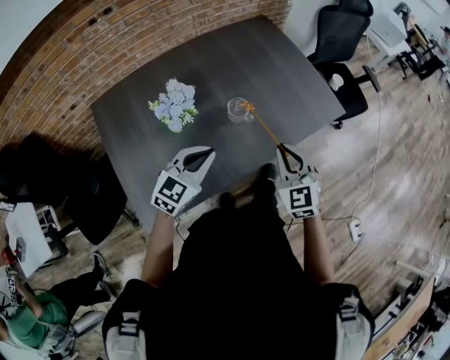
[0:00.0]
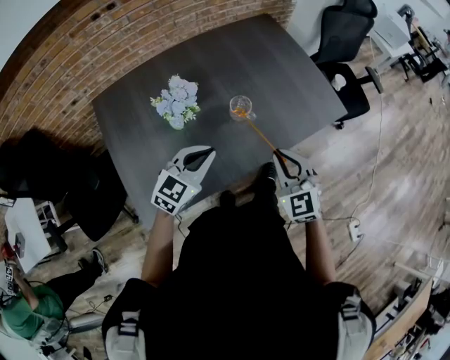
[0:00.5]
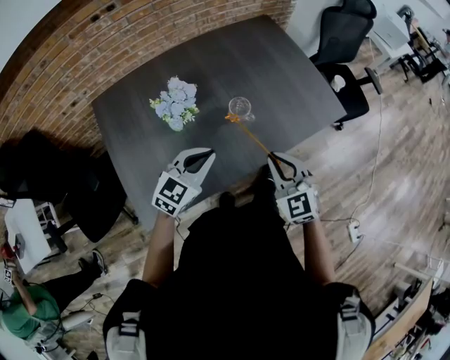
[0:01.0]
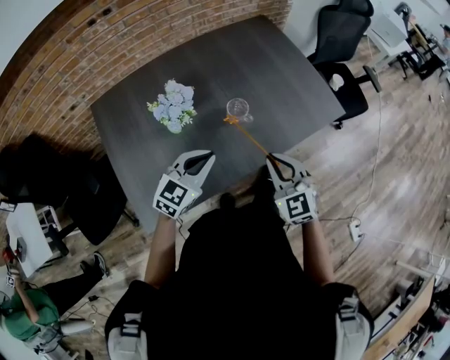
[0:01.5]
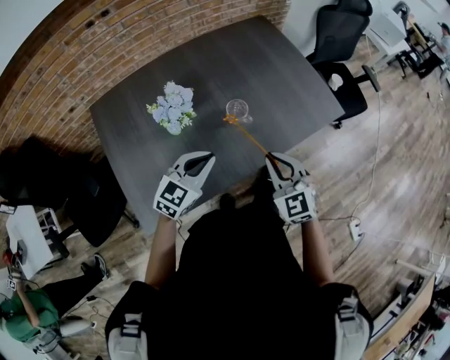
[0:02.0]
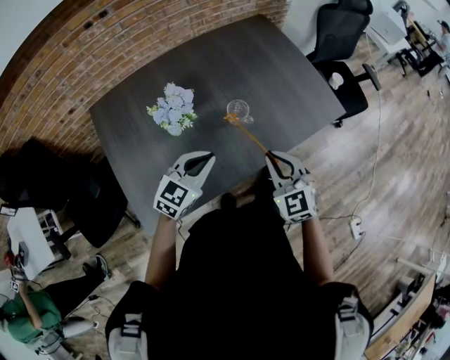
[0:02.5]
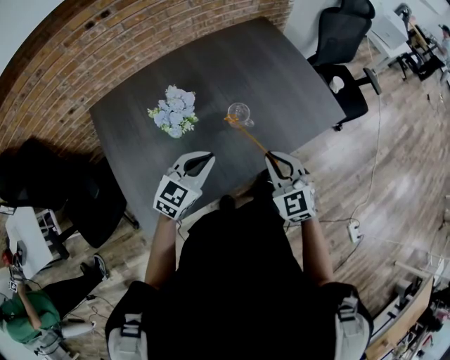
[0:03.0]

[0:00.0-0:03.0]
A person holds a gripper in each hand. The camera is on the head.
0:00.0 to 0:03.0: The grippers stay close to where they were, moving slightly.

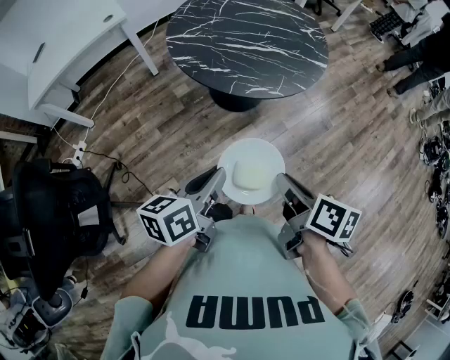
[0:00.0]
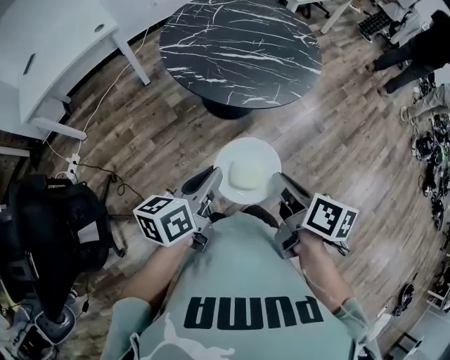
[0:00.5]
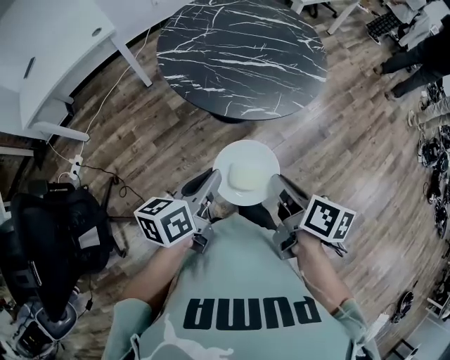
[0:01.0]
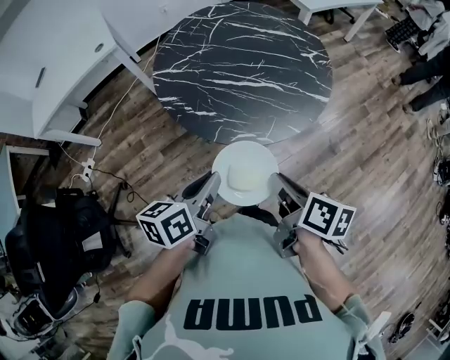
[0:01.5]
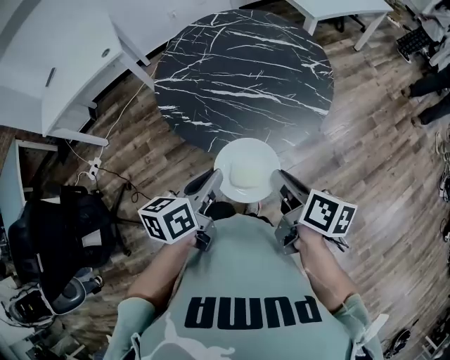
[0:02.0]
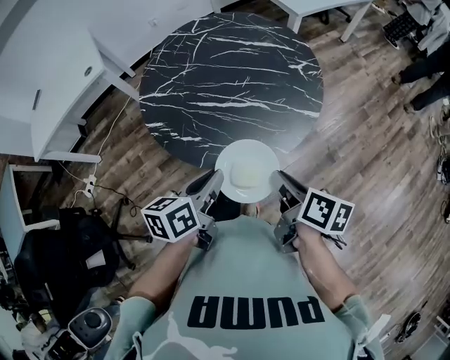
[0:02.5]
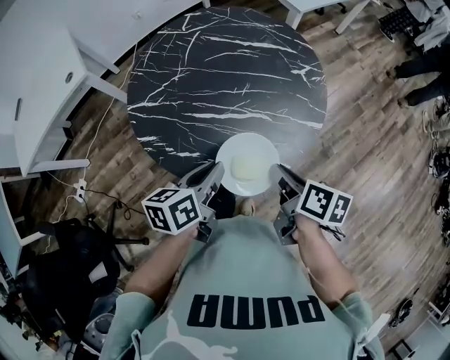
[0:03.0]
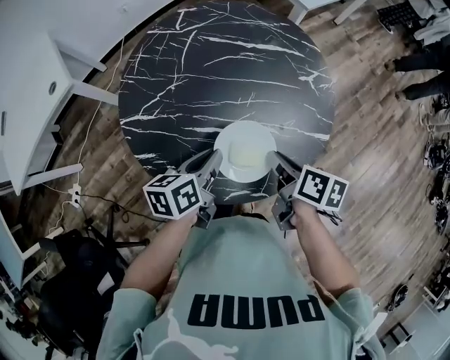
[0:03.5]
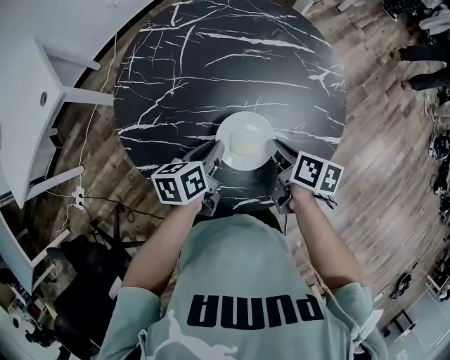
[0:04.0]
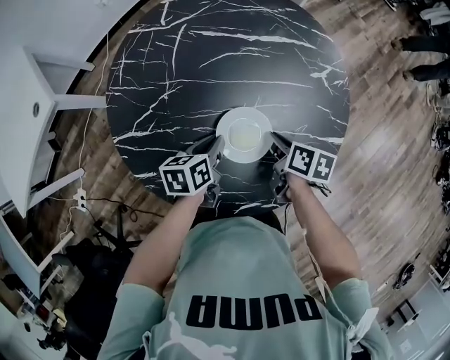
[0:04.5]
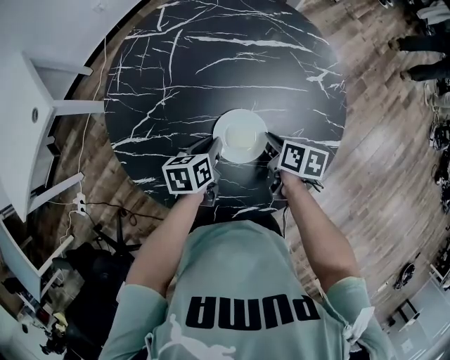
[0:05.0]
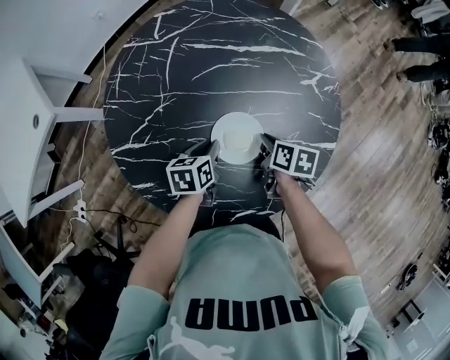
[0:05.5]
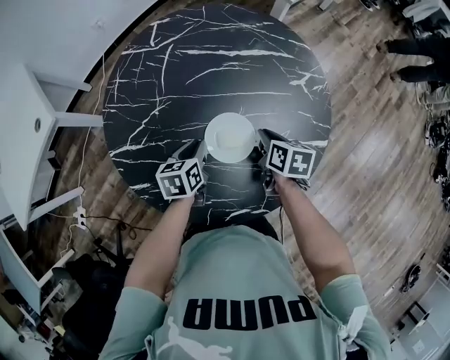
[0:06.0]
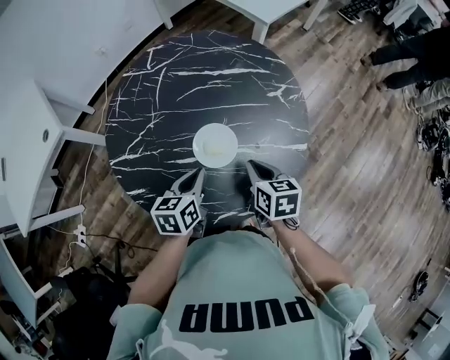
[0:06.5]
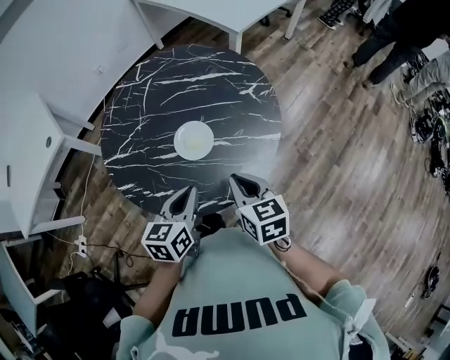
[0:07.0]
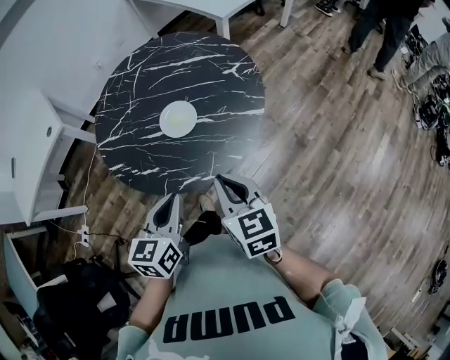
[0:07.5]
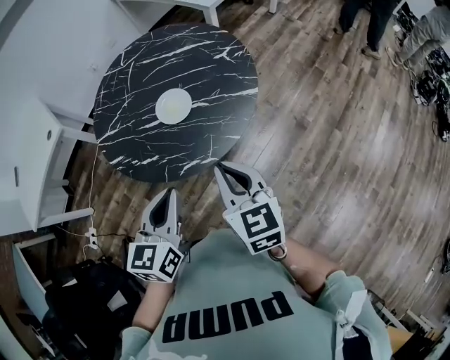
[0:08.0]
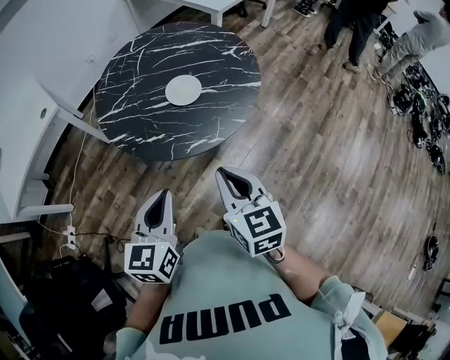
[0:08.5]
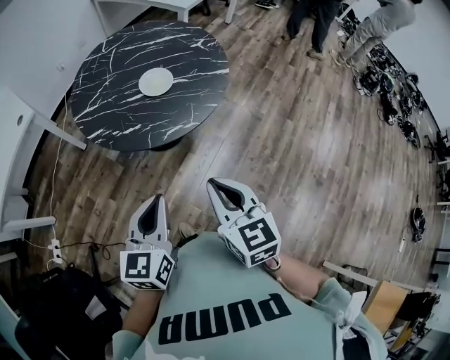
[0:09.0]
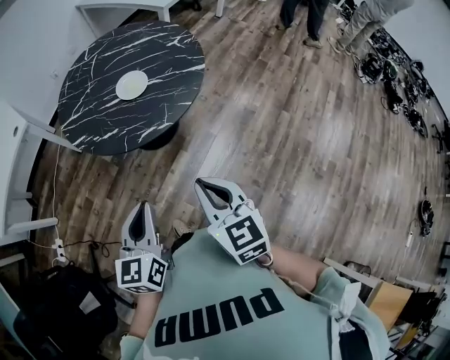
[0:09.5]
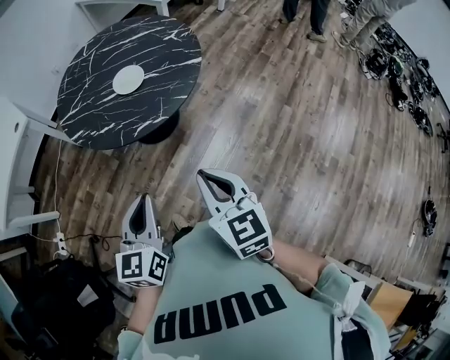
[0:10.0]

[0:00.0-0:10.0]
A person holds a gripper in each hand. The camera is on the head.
0:00.0 to 0:02.0: The grippers both shift forward and to the right by roughly 25 cm.
0:02.0 to 0:04.0: Both grippers move forward and downward, about 35 cm.
0:04.0 to 0:06.0: The right gripper travels forward and downward by approximately 10 cm; the left gripper moves downward, roughly 5 cm.
0:06.0 to 0:08.0: Both grippers travel together backward and upward, some 40 cm. The right gripper swivels roughly 40 degrees; the left gripper rotates about 30 degrees.
0:08.0 to 0:10.0: Both grippers move backward, about 20 cm.

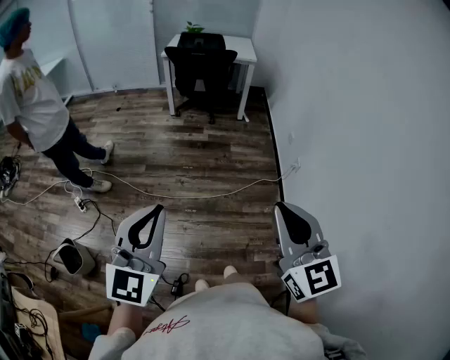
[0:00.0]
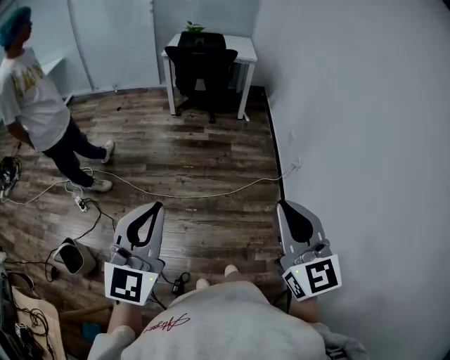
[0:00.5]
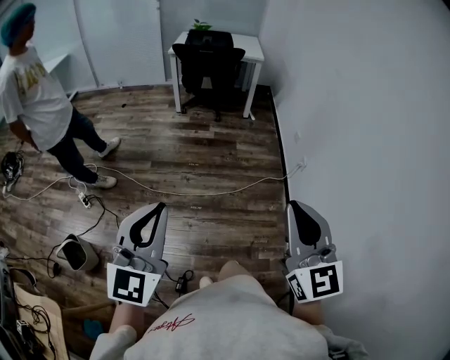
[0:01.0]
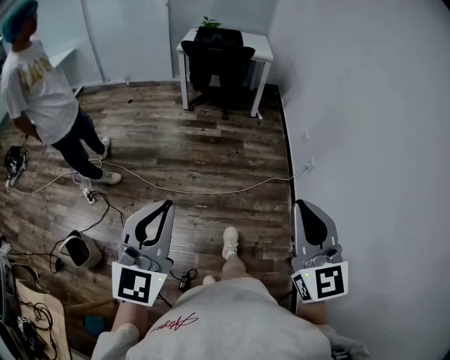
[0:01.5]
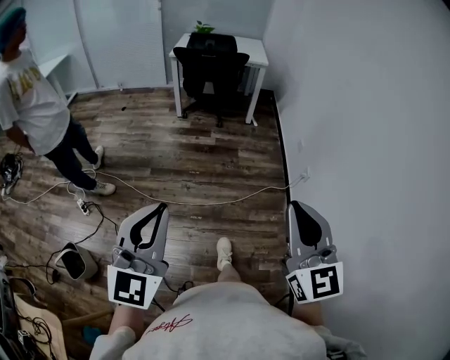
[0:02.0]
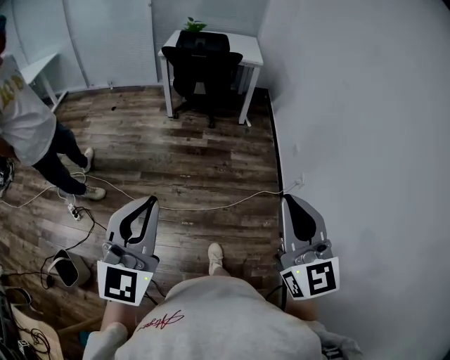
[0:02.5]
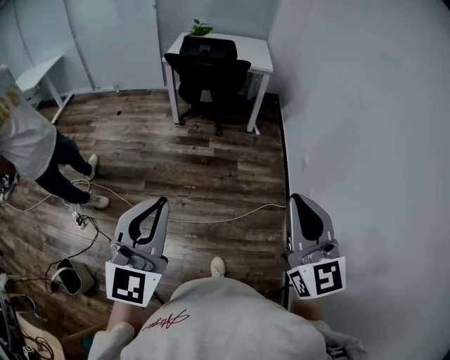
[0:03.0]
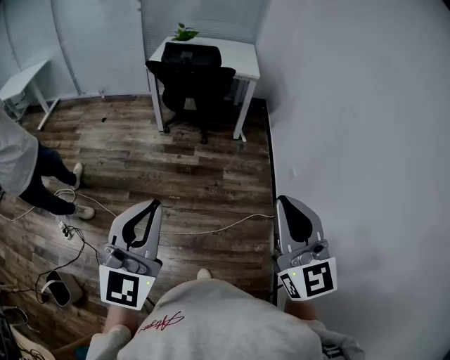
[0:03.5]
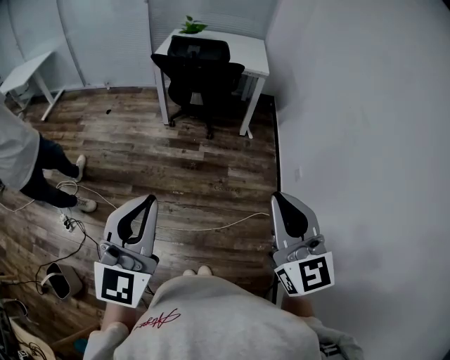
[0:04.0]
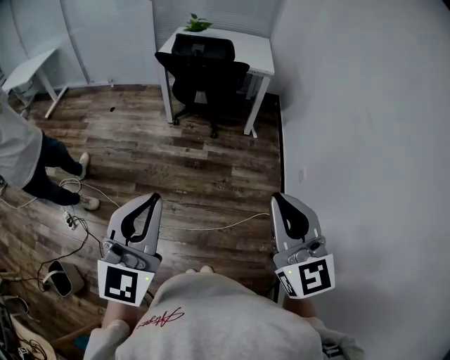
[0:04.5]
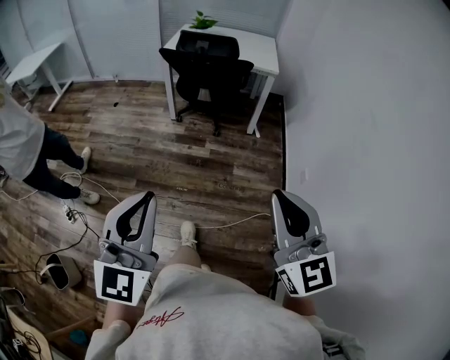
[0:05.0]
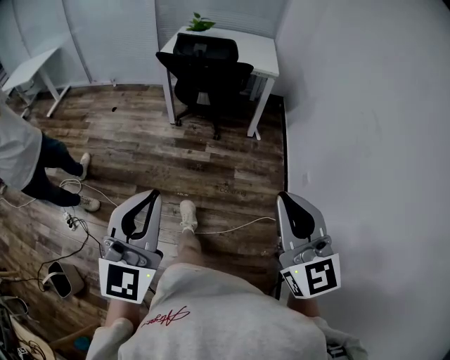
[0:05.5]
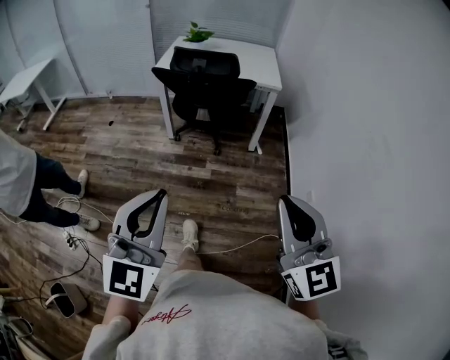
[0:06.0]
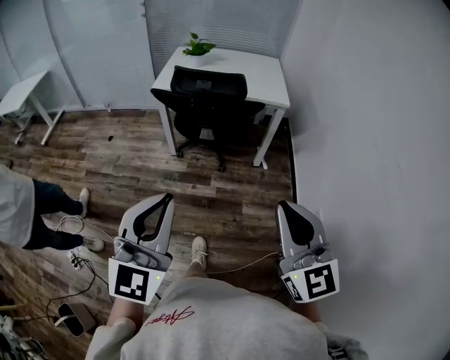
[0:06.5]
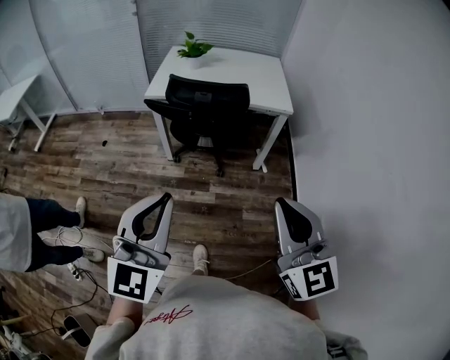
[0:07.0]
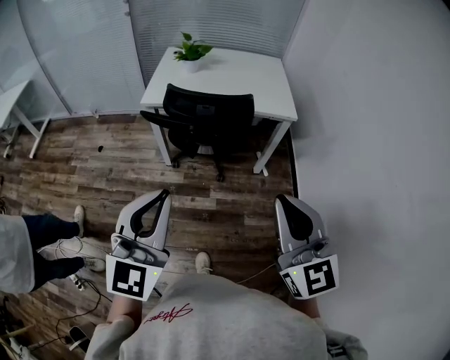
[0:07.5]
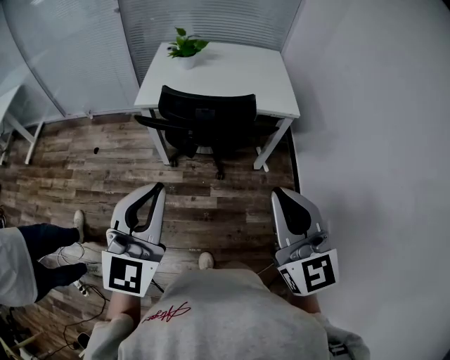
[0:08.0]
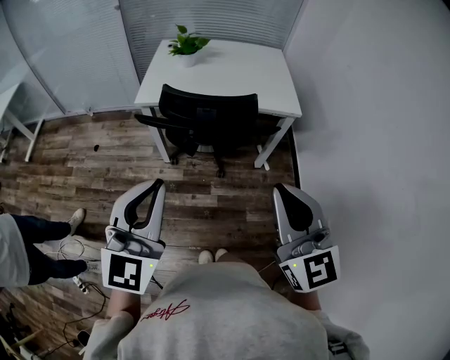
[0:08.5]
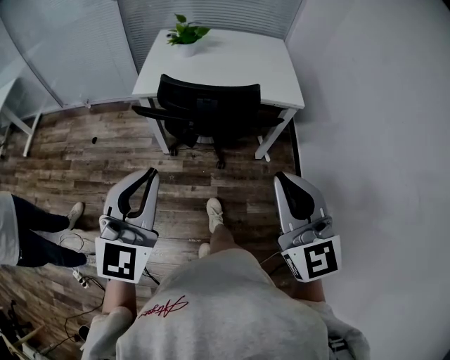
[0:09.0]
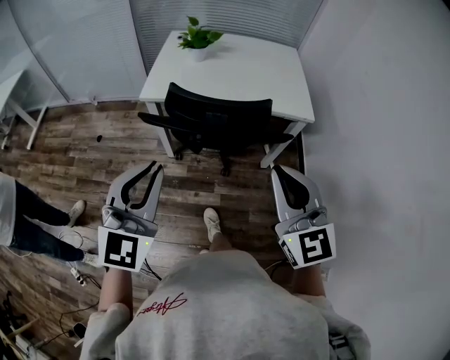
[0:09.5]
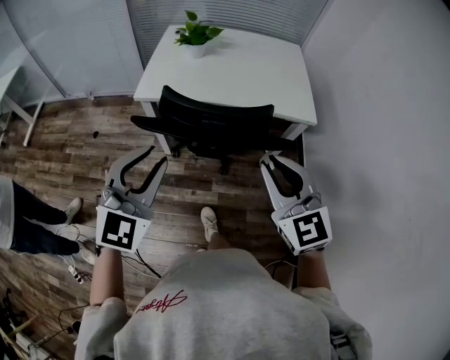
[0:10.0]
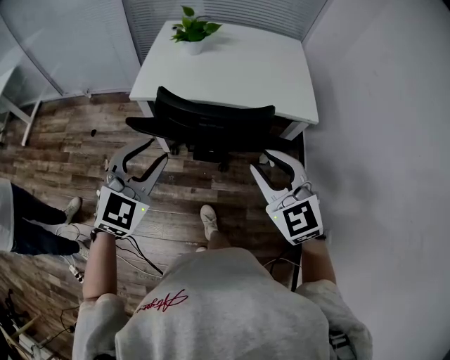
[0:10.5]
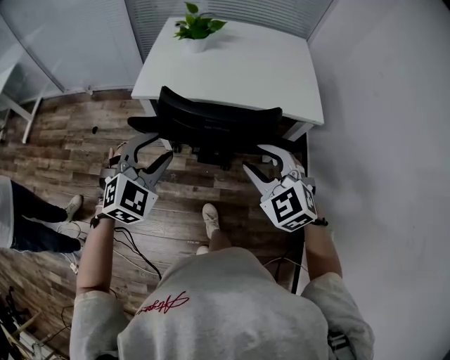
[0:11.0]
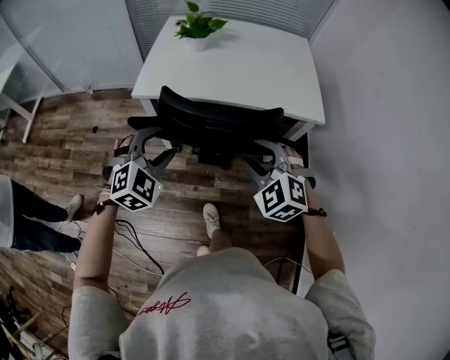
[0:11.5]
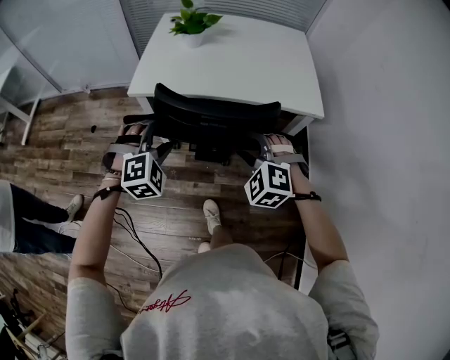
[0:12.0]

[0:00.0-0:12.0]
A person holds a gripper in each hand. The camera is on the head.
0:00.0 to 0:02.0: The grippers both shift forward by some 5 cm.
0:02.0 to 0:04.0: The grippers both shift forward by about 35 cm.
0:04.0 to 0:06.0: Both grippers travel together forward, some 15 cm.
0:06.0 to 0:08.0: The grippers both shift forward by some 40 cm.
0:08.0 to 0:10.0: The left gripper goes about 15 cm forward, rotates roughly 20 degrees, and opens its fingers. Meanwhile the right gripper is displaced forward and downward by roughly 20 cm.
0:10.0 to 0:12.0: Both grippers move downward and forward, some 20 cm. The right gripper points its fingers roughly 30 degrees further downward, and opens its fingers. Meanwhile the left gripper angles its fingers downward, by approximately 30 degrees, and opens its fingers.

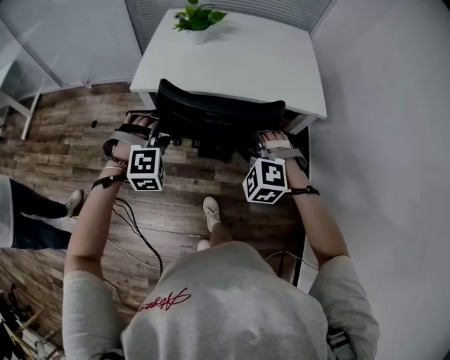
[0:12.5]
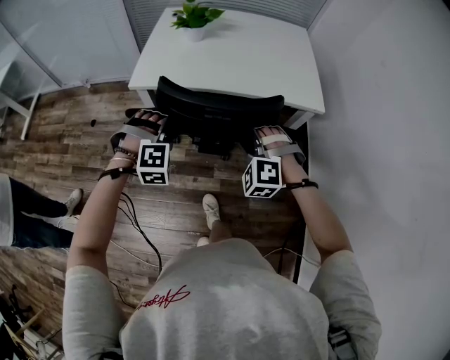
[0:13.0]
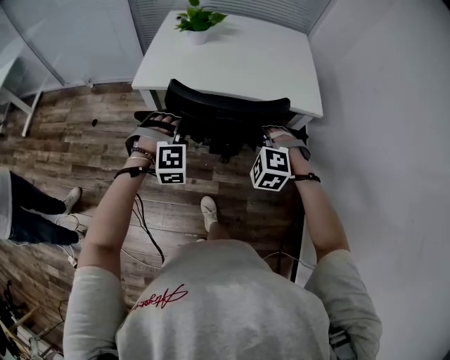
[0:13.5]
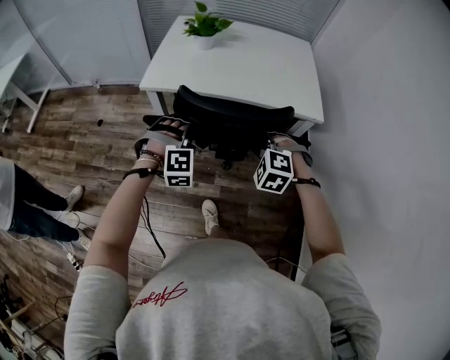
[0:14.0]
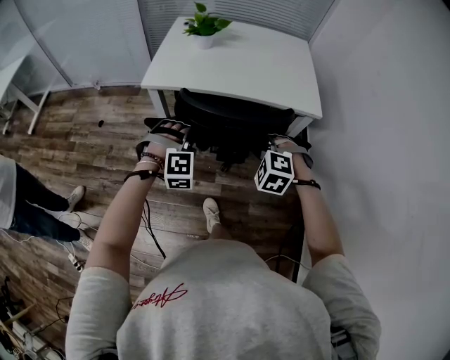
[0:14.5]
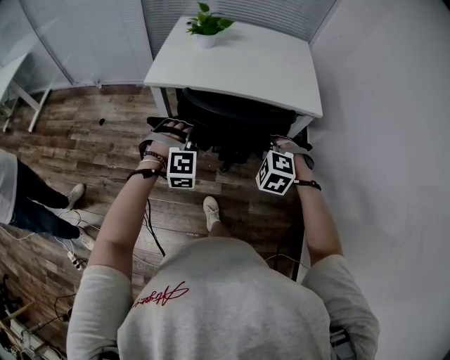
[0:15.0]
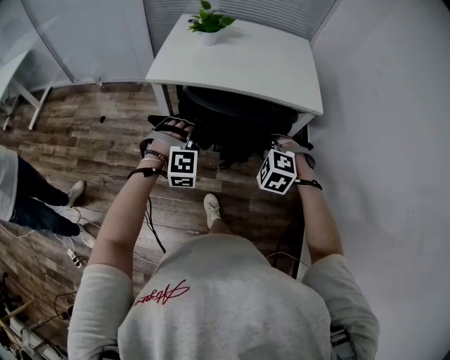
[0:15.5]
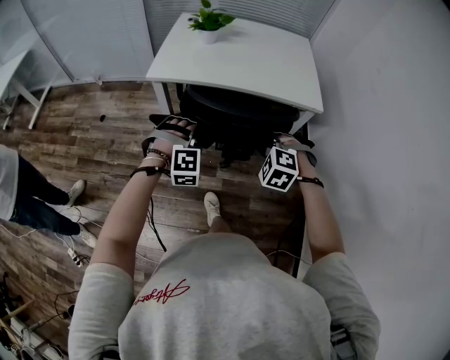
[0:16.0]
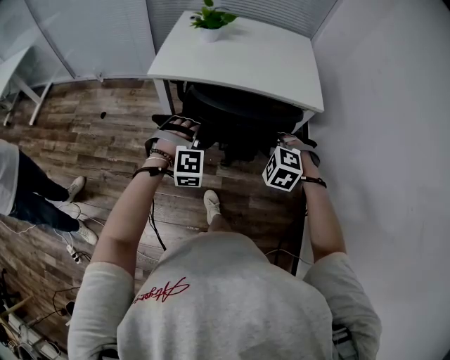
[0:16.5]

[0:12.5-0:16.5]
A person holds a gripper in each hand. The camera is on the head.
0:12.5 to 0:14.5: The right gripper shifts by roughly 5 cm, and closes. The left gripper is displaced to the right by about 5 cm, and closes its fingers.
0:14.5 to 0:16.5: The grippers make only small movements.
